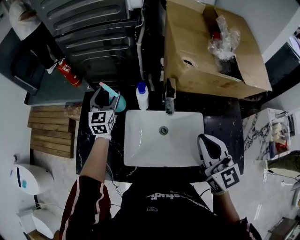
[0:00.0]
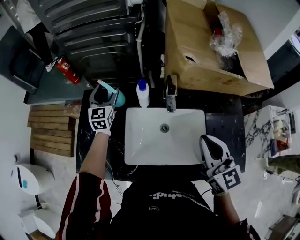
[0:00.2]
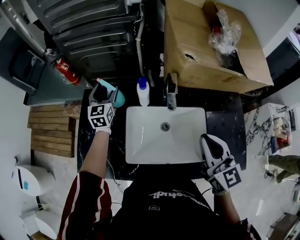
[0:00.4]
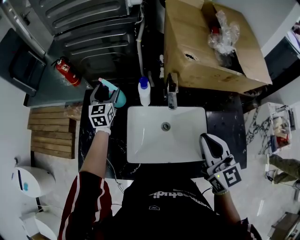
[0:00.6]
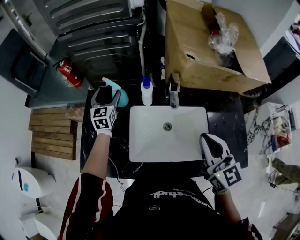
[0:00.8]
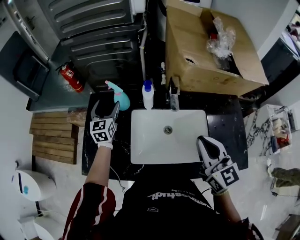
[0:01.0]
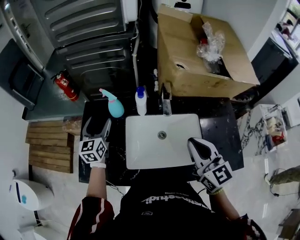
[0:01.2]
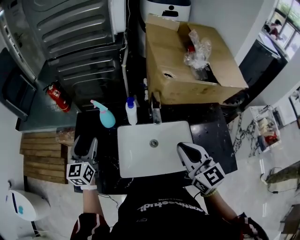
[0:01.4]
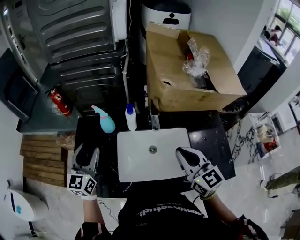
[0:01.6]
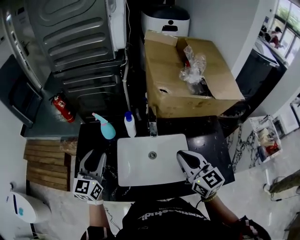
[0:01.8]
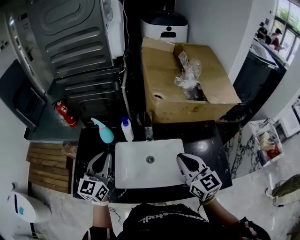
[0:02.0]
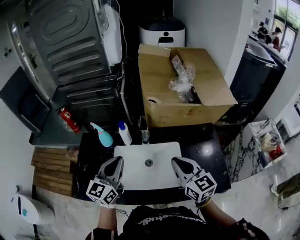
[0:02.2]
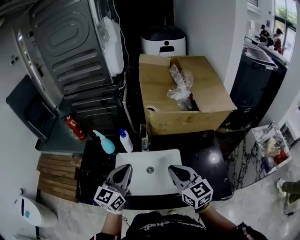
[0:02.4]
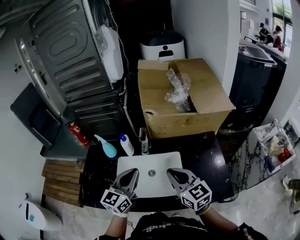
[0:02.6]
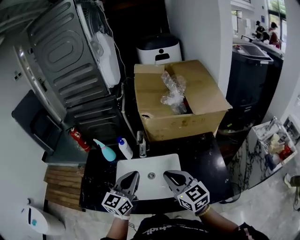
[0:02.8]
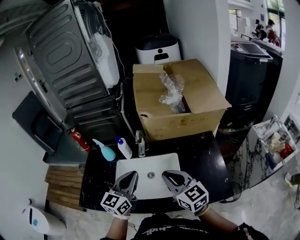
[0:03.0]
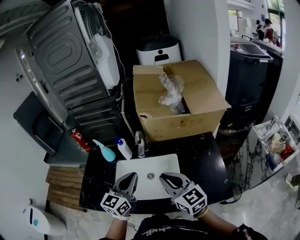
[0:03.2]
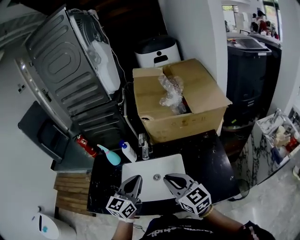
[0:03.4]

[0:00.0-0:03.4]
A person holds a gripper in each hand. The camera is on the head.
0:00.0 to 0:01.6: The left gripper heads backward, covering some 20 cm.
0:01.6 to 0:03.4: The left gripper is displaced to the right by approximately 35 cm, and closes. Meanwhile the right gripper moves to the right and backward, about 15 cm.

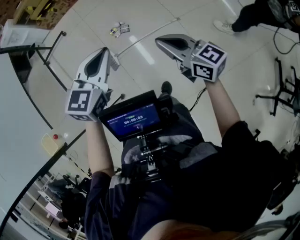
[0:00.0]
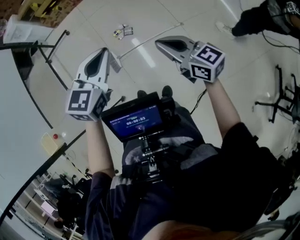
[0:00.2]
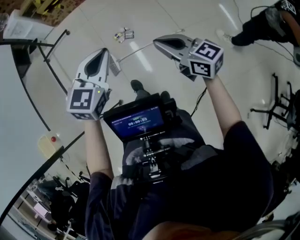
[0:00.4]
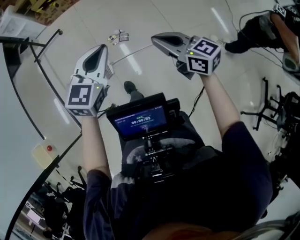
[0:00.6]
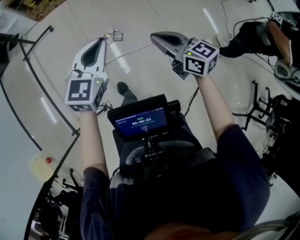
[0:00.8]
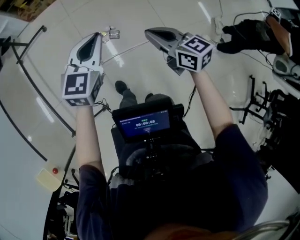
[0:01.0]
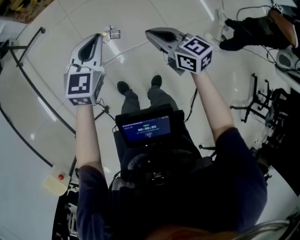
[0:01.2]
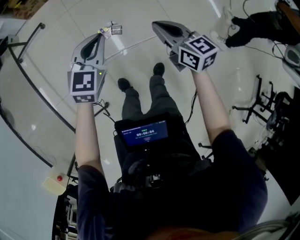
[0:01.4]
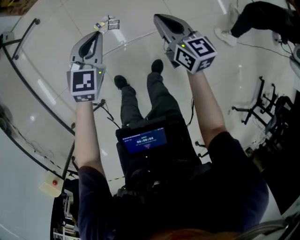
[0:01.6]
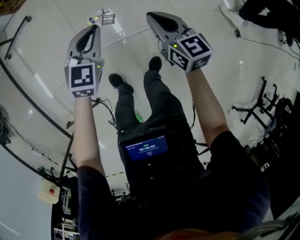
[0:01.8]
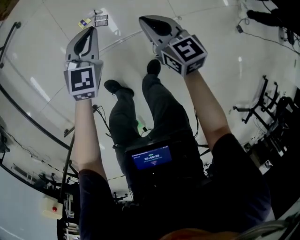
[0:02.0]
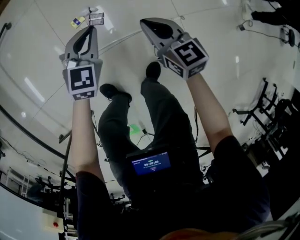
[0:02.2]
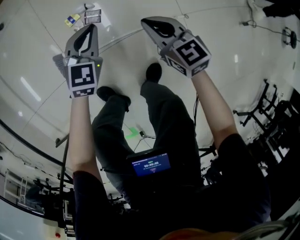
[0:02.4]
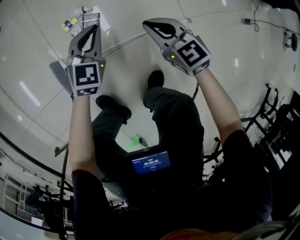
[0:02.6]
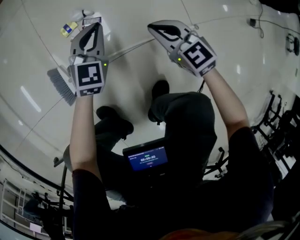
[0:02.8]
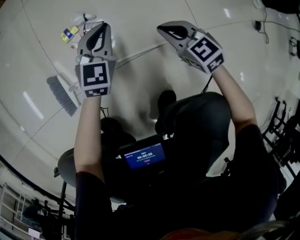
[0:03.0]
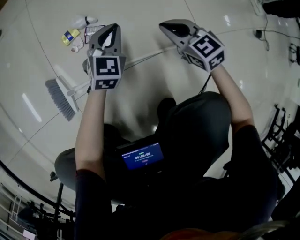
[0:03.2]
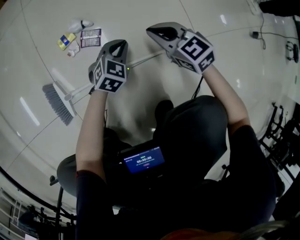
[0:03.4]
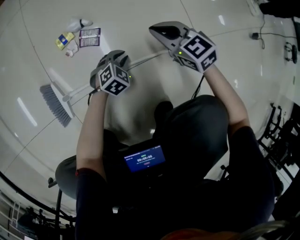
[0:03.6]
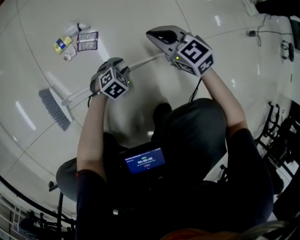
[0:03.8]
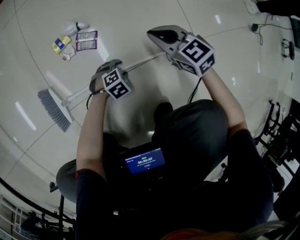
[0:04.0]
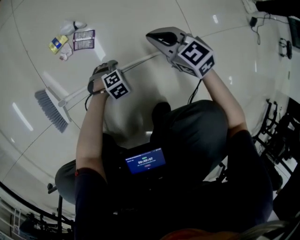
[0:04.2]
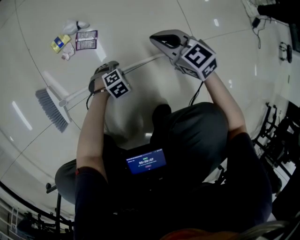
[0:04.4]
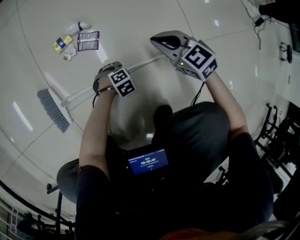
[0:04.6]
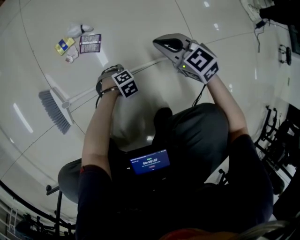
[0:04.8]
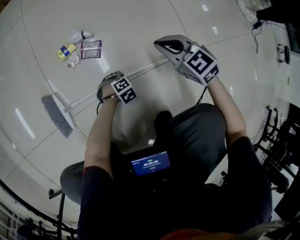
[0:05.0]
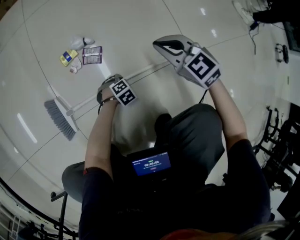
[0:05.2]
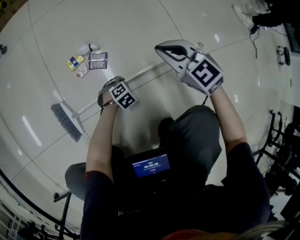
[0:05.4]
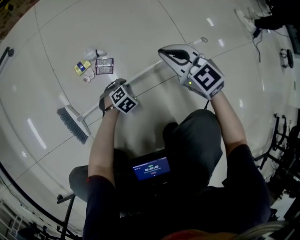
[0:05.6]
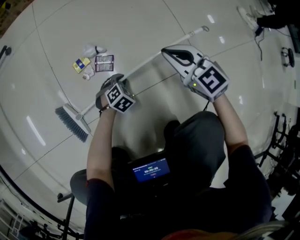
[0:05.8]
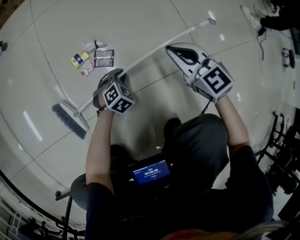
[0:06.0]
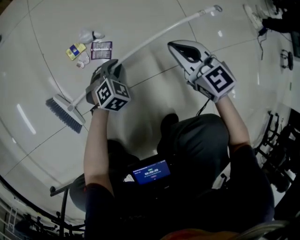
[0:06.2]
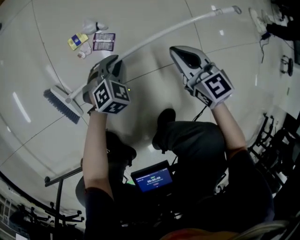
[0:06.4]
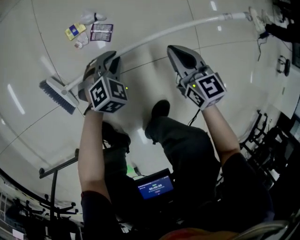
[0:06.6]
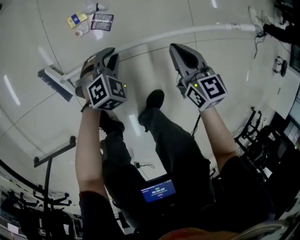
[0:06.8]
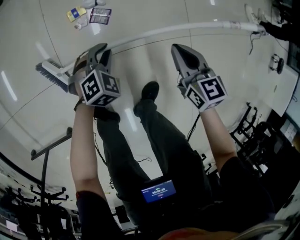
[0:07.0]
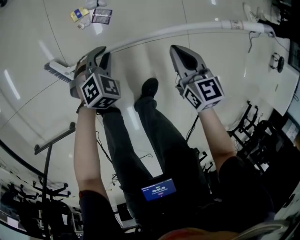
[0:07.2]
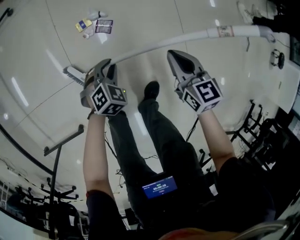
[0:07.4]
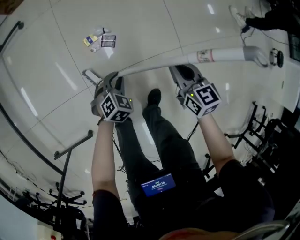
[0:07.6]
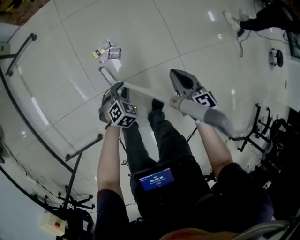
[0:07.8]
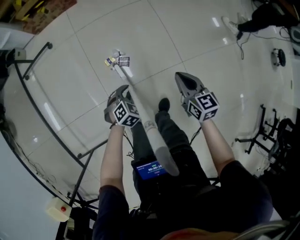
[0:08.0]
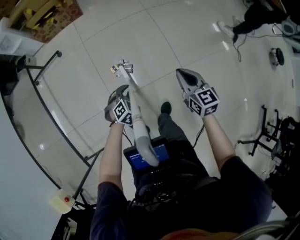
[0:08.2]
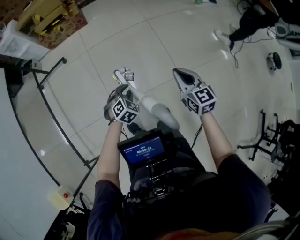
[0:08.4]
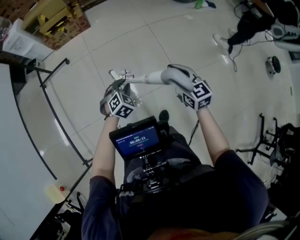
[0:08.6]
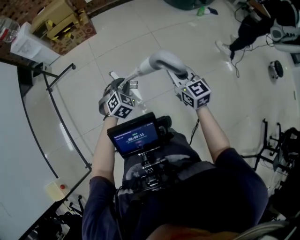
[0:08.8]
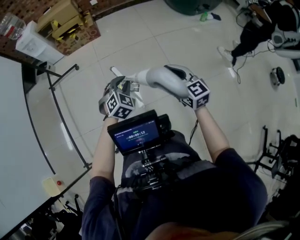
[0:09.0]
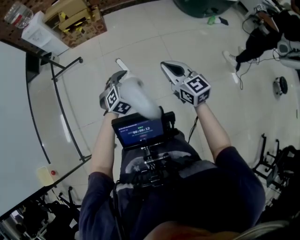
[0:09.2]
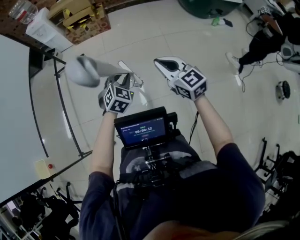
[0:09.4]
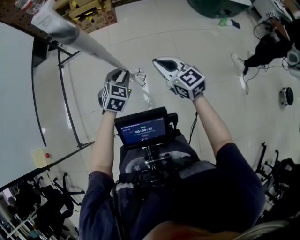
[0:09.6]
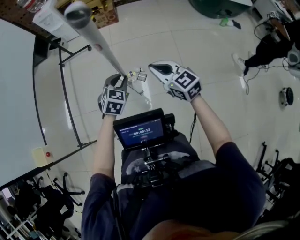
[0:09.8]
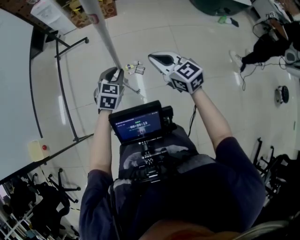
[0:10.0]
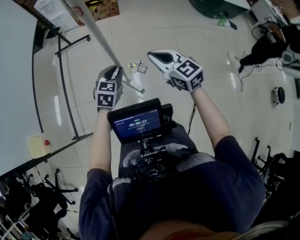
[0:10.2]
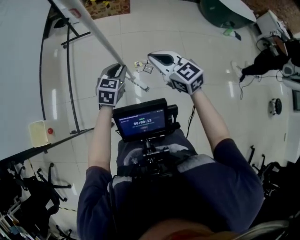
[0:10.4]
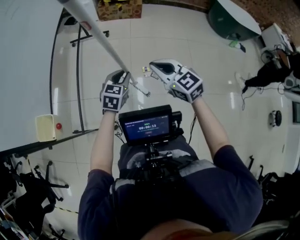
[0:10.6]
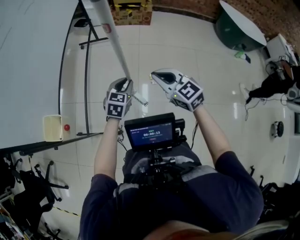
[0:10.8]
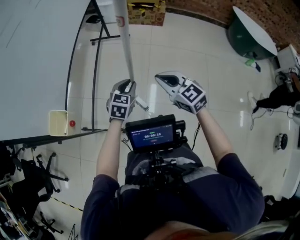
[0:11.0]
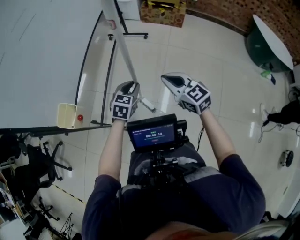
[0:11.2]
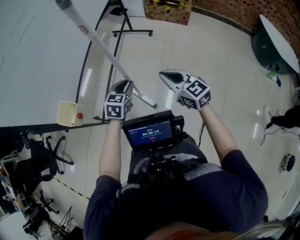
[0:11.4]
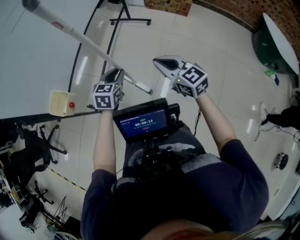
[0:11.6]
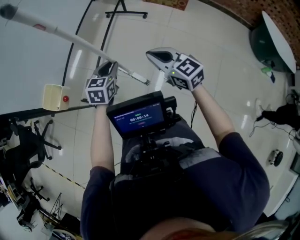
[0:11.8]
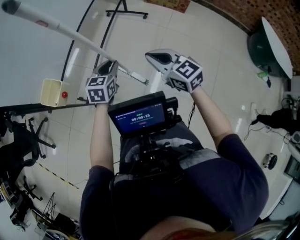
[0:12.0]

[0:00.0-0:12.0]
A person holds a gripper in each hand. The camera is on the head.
0:00.0 to 0:01.6: Both grippers move forward and downward, about 40 cm. The right gripper rotates about 20 degrees.
0:01.6 to 0:03.0: Both grippers move downward, approximately 50 cm. The right gripper changes its angle by some 40 degrees.
0:03.0 to 0:04.4: The left gripper shifts roughly 30 cm downward, points its fingers about 40 degrees further downward, and opens.
0:04.4 to 0:06.0: Both grippers move upward, approximately 10 cm. The left gripper swivels about 20 degrees, and closes up.
0:06.0 to 0:07.6: Both grippers move upward, some 25 cm. The right gripper changes its angle by roughly 30 degrees.
0:07.6 to 0:09.0: Both grippers travel together upward, roughly 40 cm. The left gripper rotates approximately 20 degrees; the right gripper changes its angle by some 20 degrees.
0:09.0 to 0:10.4: Both grippers move to the left, some 25 cm. The right gripper turns by some 30 degrees, while the left gripper changes its angle by about 40 degrees.
0:10.4 to 0:12.0: The left gripper changes place by roughly 25 cm, and swivels some 30 degrees. The right gripper shifts by roughly 20 cm, and turns by some 30 degrees.

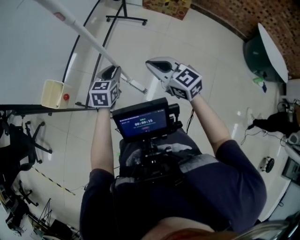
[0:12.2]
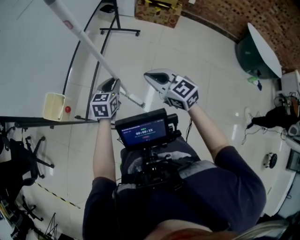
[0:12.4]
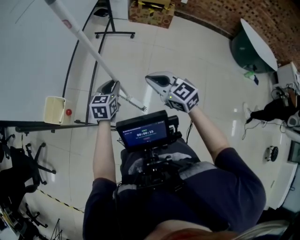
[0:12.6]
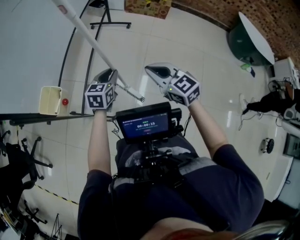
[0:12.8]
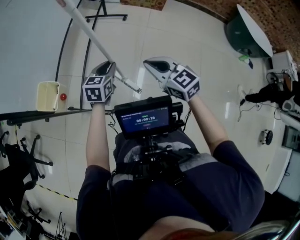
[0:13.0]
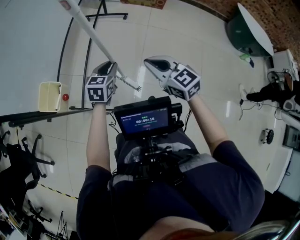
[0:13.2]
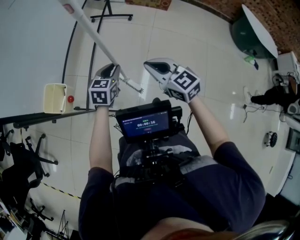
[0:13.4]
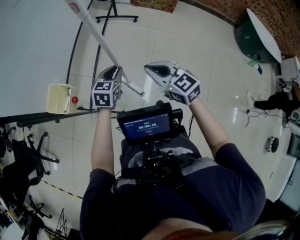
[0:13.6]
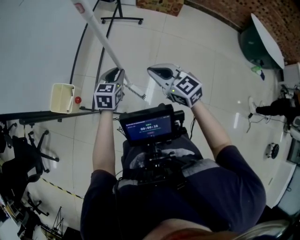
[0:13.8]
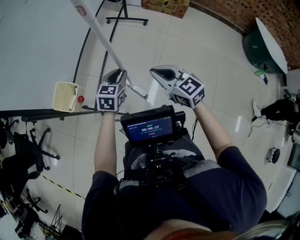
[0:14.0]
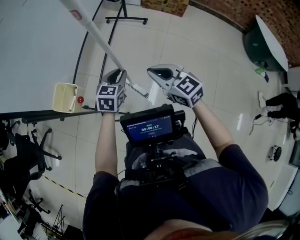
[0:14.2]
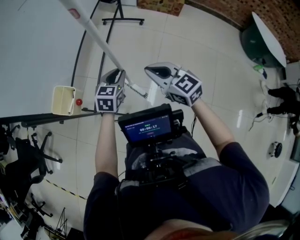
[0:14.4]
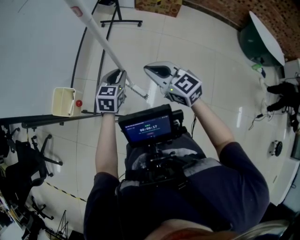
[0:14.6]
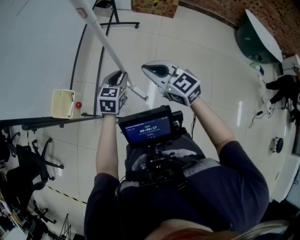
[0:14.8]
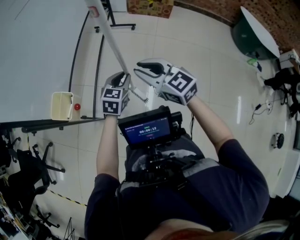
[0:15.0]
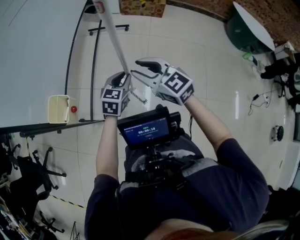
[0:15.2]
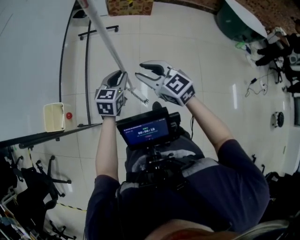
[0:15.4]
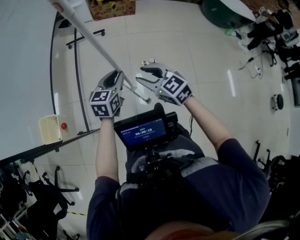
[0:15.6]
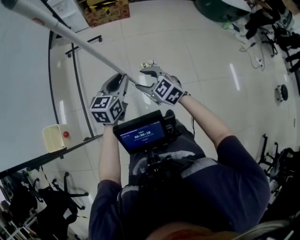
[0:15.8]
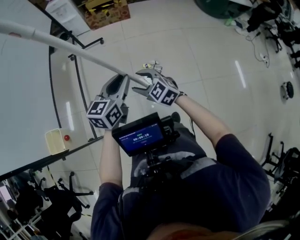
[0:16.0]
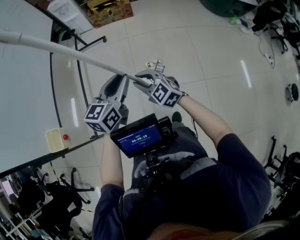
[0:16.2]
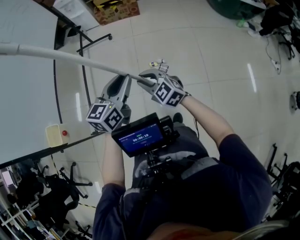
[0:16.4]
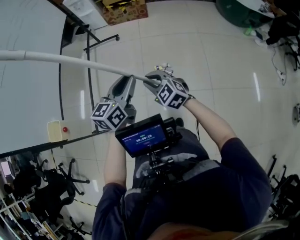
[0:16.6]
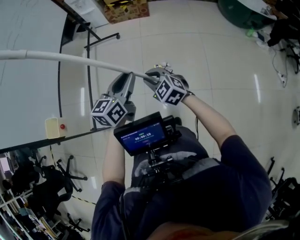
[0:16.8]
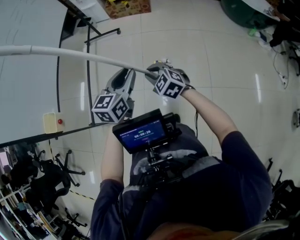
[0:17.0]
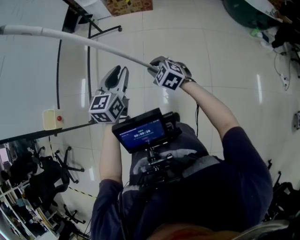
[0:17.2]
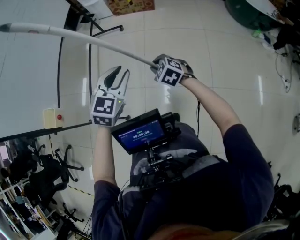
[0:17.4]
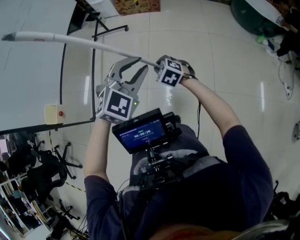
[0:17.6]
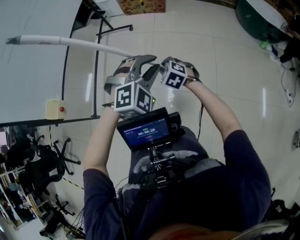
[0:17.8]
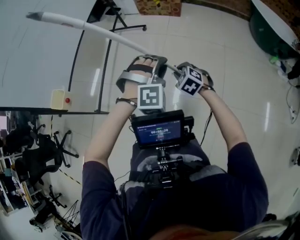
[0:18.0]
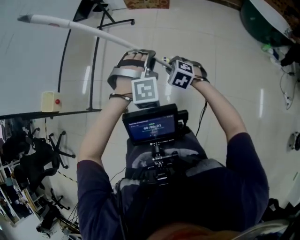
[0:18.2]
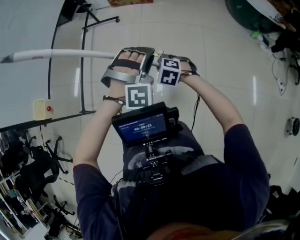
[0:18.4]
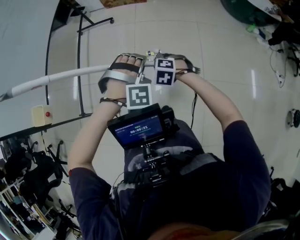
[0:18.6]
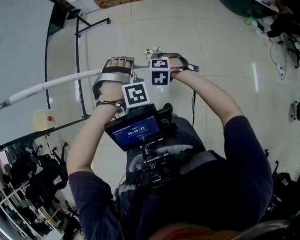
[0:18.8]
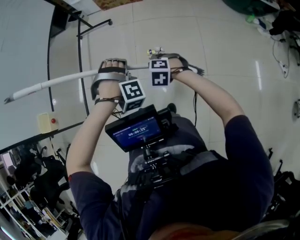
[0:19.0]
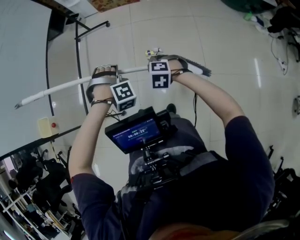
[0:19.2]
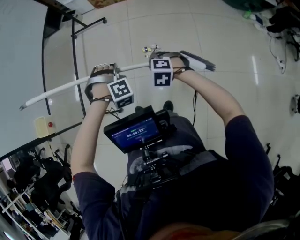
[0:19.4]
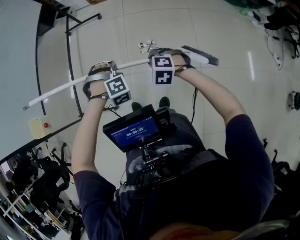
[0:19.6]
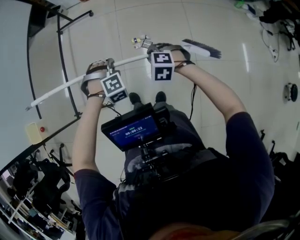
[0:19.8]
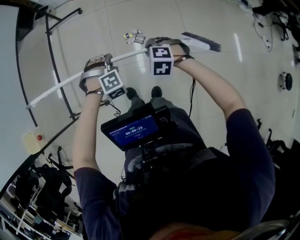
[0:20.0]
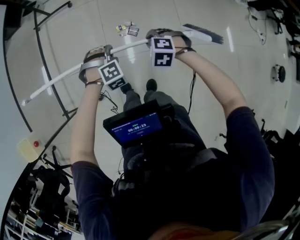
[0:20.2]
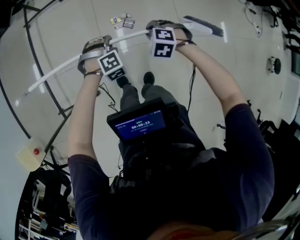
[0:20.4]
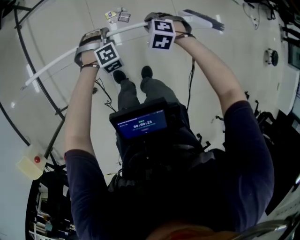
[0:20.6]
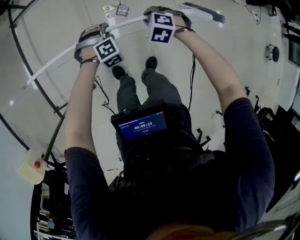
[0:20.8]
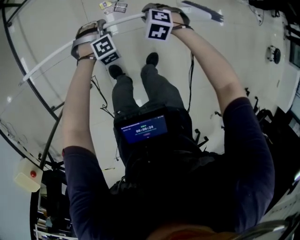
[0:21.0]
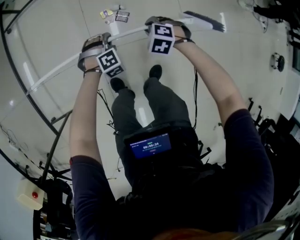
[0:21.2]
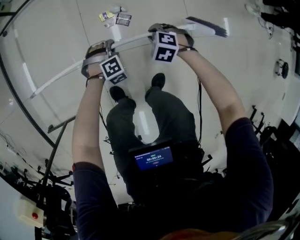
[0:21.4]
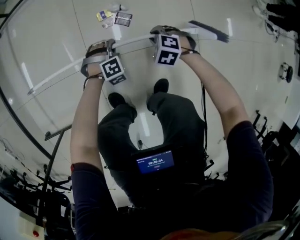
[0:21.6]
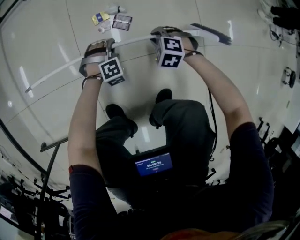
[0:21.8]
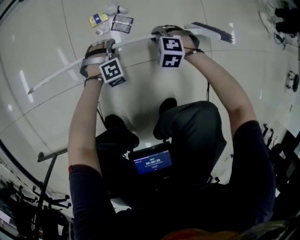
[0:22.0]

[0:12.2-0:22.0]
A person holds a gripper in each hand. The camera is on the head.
0:12.2 to 0:13.6: The right gripper goes roughly 5 cm to the left.
0:13.6 to 0:15.0: The right gripper is displaced upward by some 5 cm, and opens.
0:15.0 to 0:16.4: The left gripper travels to the right and upward by some 25 cm, and turns by about 30 degrees. The right gripper heads to the right and downward, covering approximately 25 cm, and opens and closes again.
0:16.4 to 0:17.8: The right gripper moves to the right and downward, some 10 cm, and turns by approximately 30 degrees, while the left gripper heads to the right, covering approximately 15 cm, and twists approximately 70 degrees clockwise, seen from behind.
0:17.8 to 0:19.2: The left gripper is displaced downward by roughly 15 cm, swivels about 50 degrees, and opens and closes again, while the right gripper moves roughly 5 cm.
0:19.2 to 0:20.6: The right gripper travels downward by about 15 cm, and rotates roughly 20 degrees; the left gripper travels downward by roughly 20 cm, and swivels about 30 degrees.
0:20.6 to 0:22.0: Both grippers move downward, roughly 50 cm.
